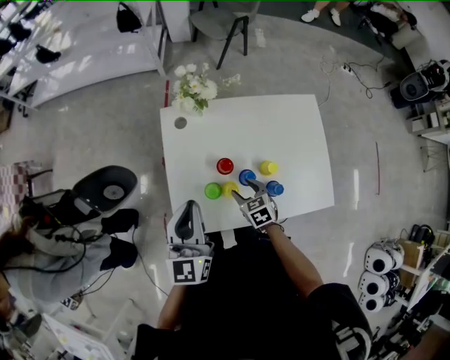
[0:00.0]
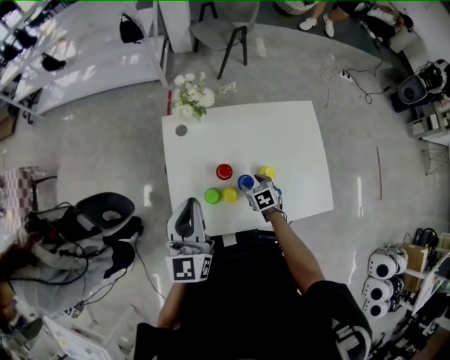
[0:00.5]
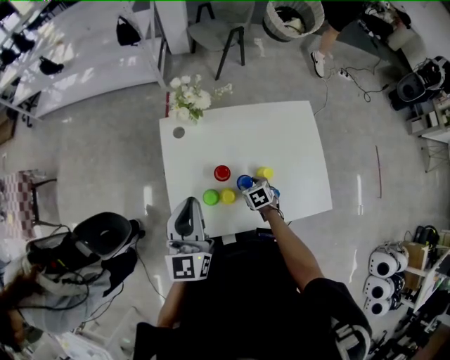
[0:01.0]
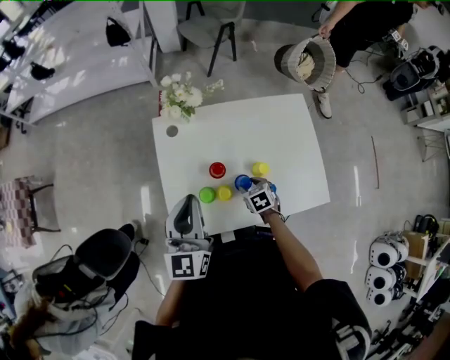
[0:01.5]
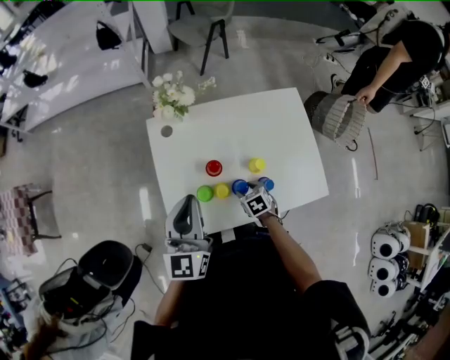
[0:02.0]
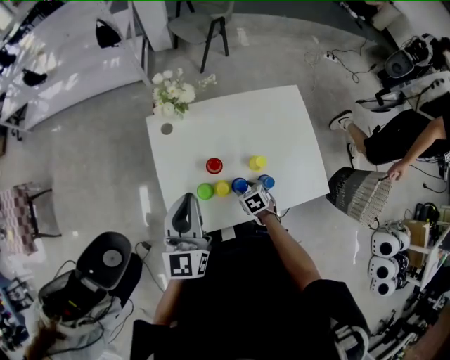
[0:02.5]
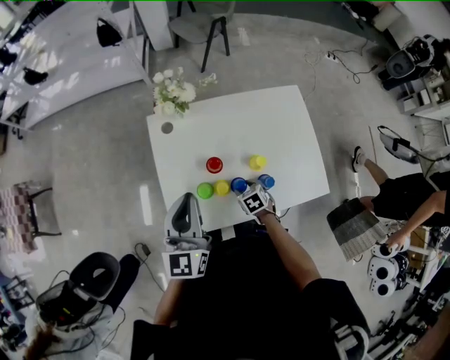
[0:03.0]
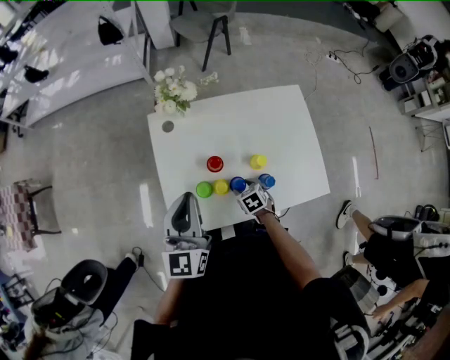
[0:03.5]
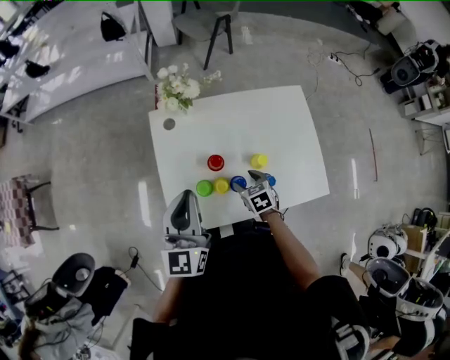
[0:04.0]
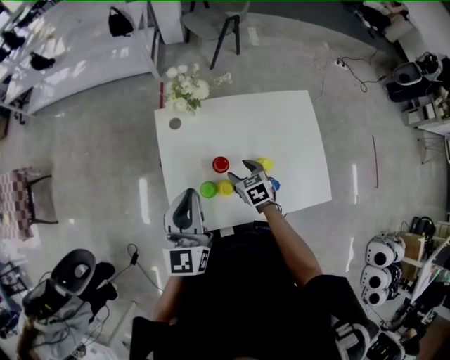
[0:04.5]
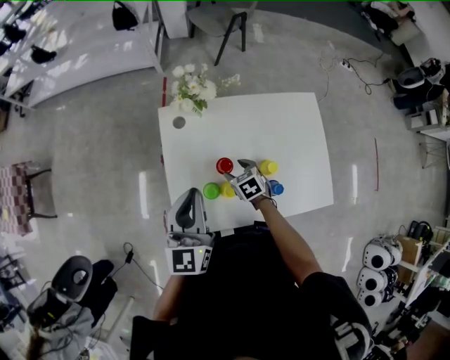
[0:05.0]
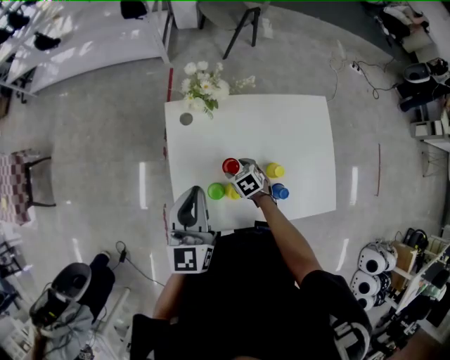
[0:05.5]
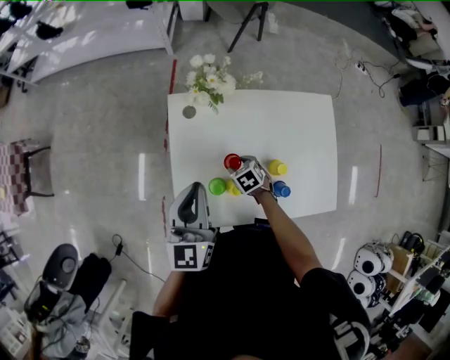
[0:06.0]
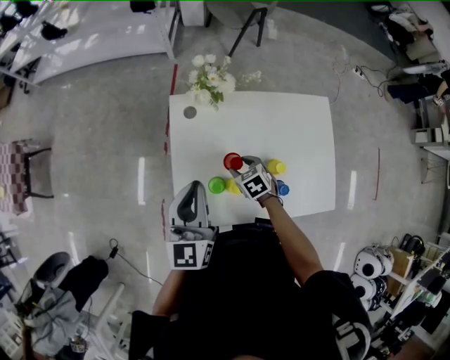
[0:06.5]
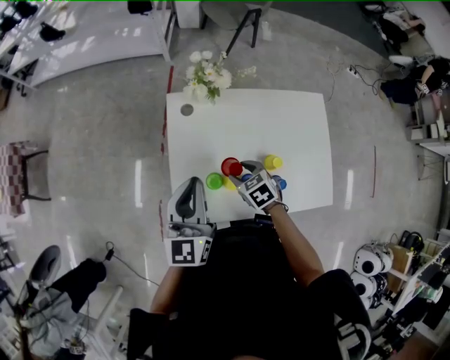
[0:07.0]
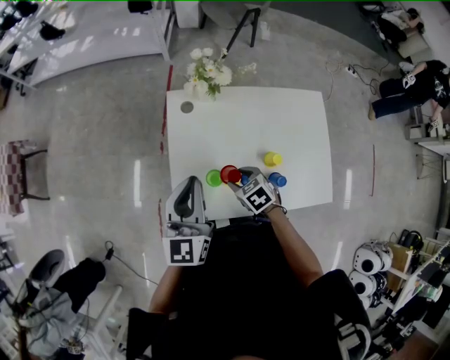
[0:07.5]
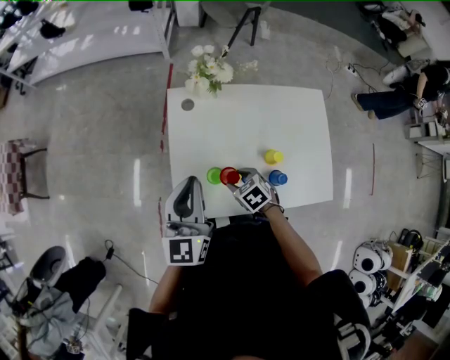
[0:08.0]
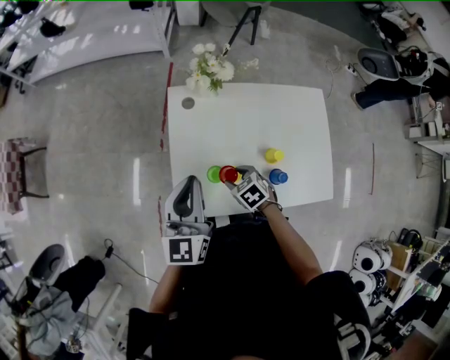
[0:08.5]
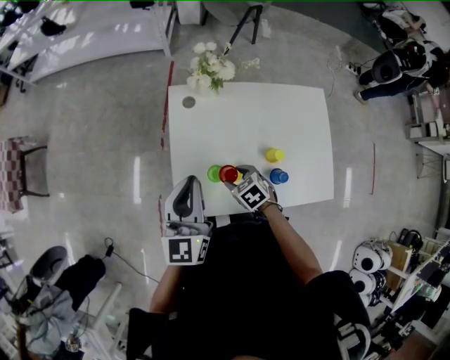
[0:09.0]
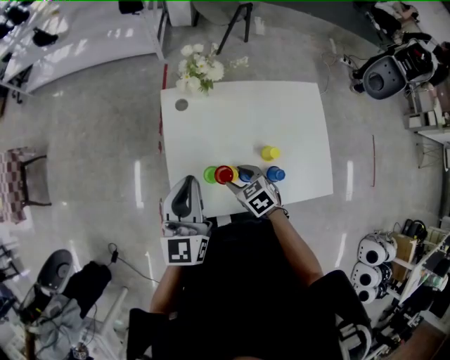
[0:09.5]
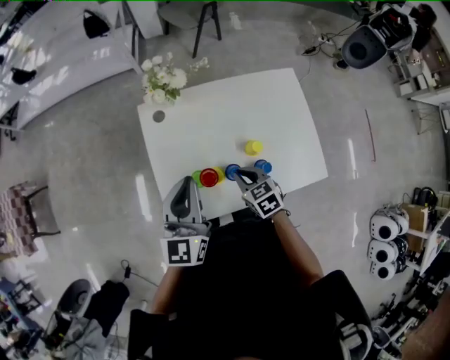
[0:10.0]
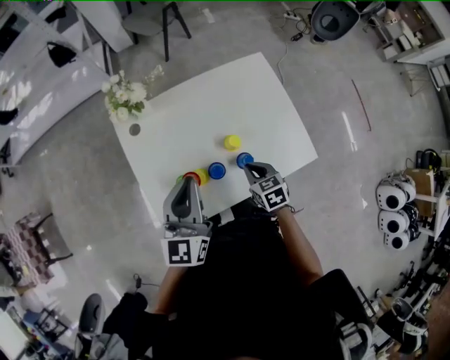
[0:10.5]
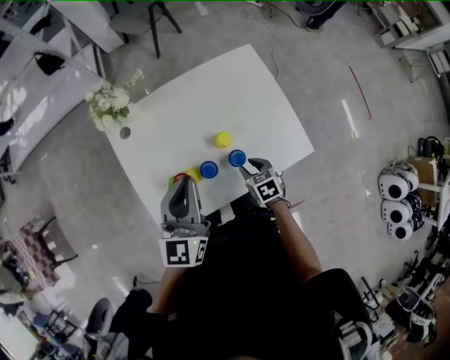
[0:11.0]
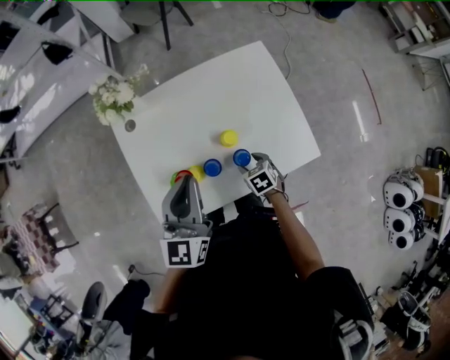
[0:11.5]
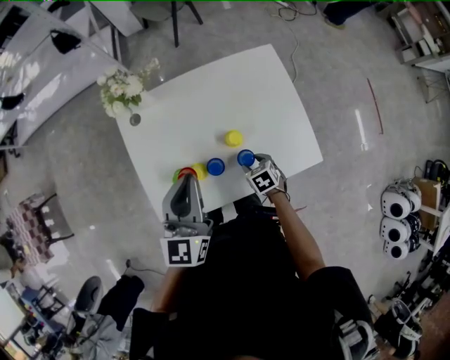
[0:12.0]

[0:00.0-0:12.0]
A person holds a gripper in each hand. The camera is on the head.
0:00.0 to 0:02.0: The right gripper is displaced to the right and downward by roughly 10 cm.
0:02.0 to 0:04.0: The right gripper is displaced upward by about 5 cm.
0:04.0 to 0:06.0: The left gripper is displaced forward by about 5 cm. Meanwhile the right gripper is displaced forward, to the left and downward by approximately 15 cm.
0:06.0 to 0:08.0: The left gripper moves some 5 cm. Meanwhile the right gripper moves backward, upward and to the left, about 15 cm.
0:08.0 to 0:10.0: The right gripper goes approximately 10 cm to the right and upward, turns by some 20 degrees, and closes; the left gripper goes some 10 cm to the right.
0:10.0 to 0:12.0: The left gripper shifts approximately 15 cm to the right. Meanwhile the right gripper is displaced to the right and downward by about 20 cm, rotates some 20 degrees, and opens.

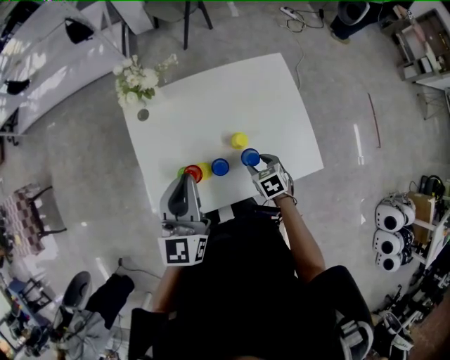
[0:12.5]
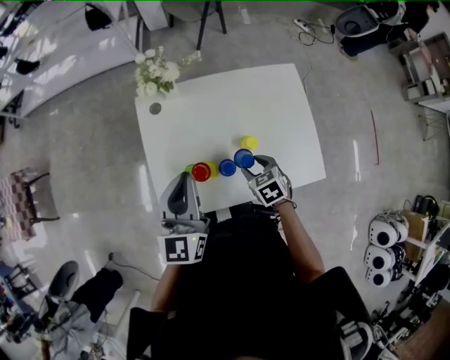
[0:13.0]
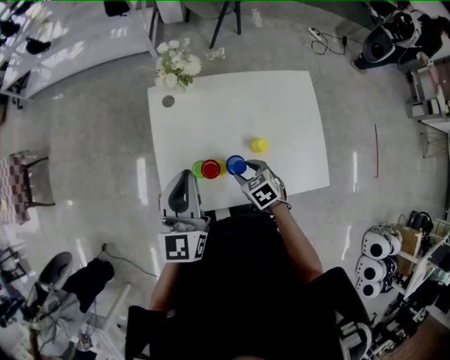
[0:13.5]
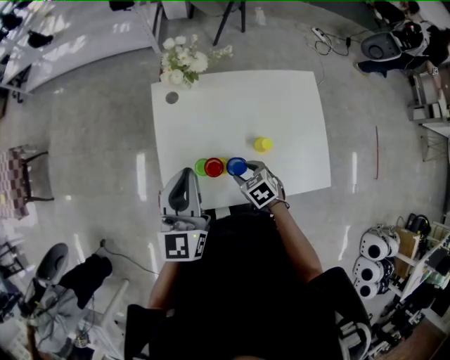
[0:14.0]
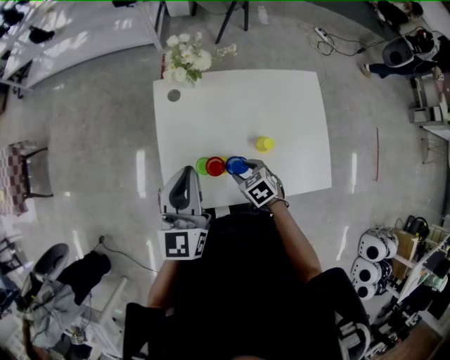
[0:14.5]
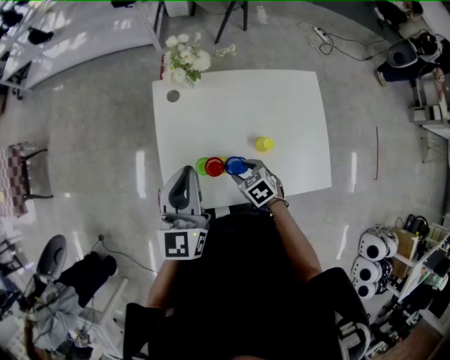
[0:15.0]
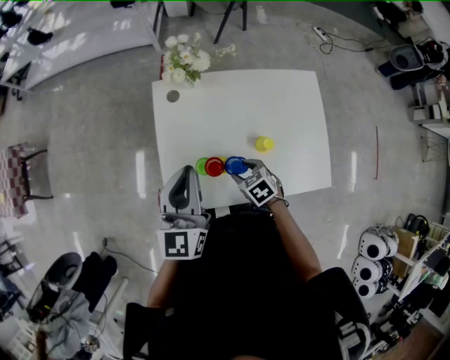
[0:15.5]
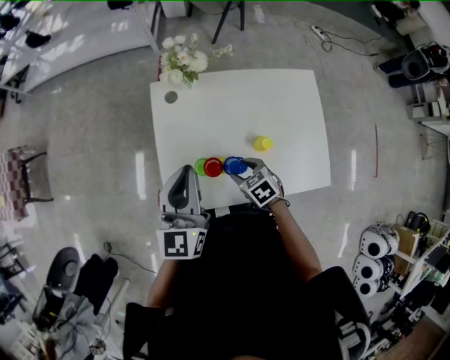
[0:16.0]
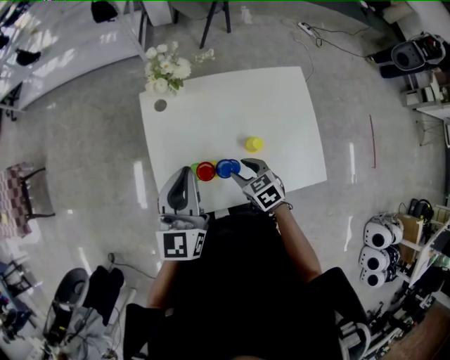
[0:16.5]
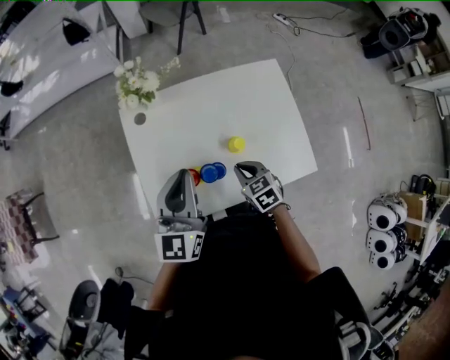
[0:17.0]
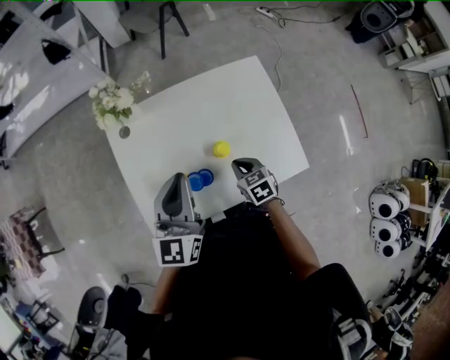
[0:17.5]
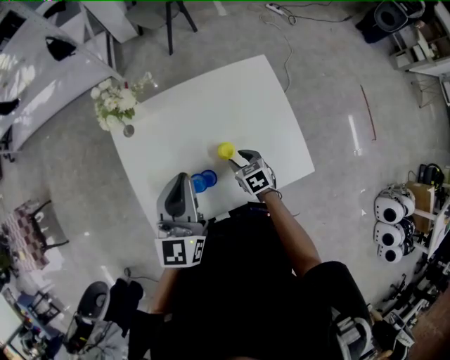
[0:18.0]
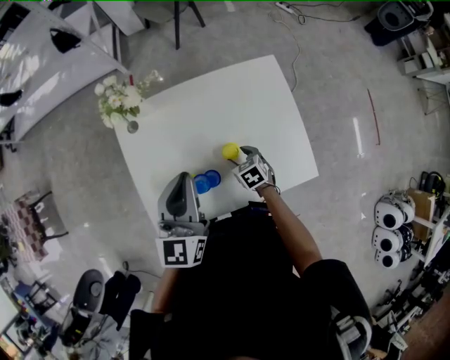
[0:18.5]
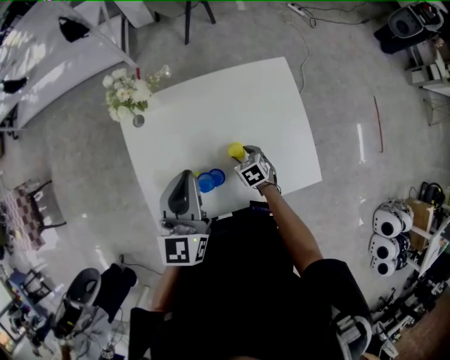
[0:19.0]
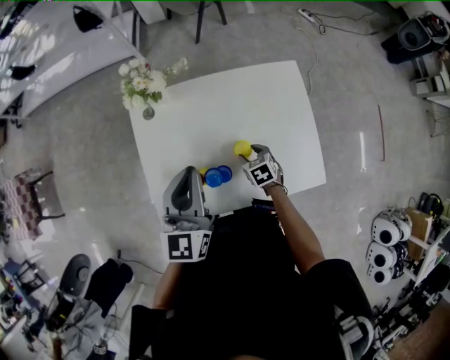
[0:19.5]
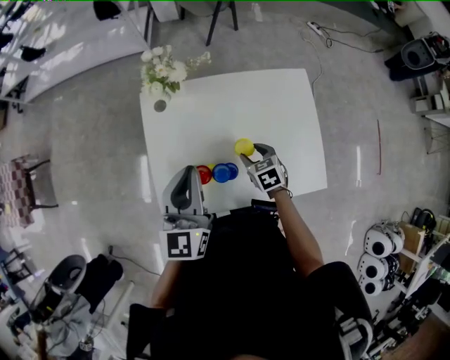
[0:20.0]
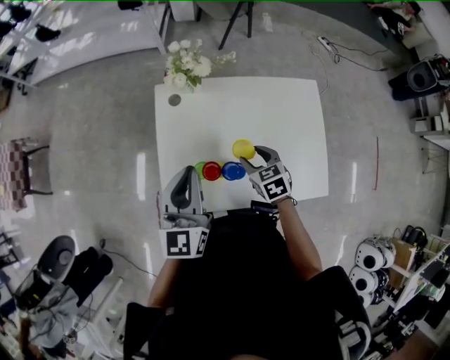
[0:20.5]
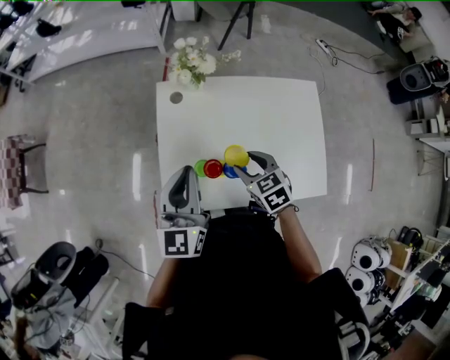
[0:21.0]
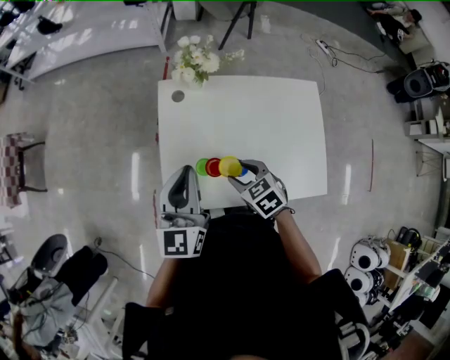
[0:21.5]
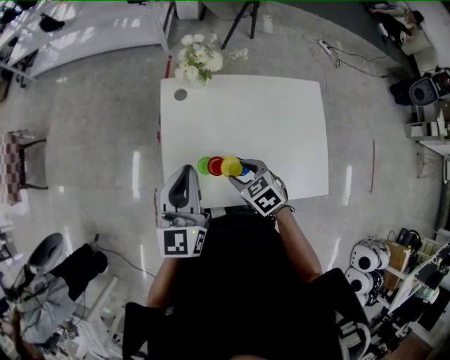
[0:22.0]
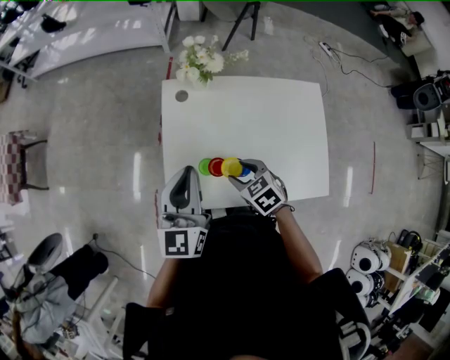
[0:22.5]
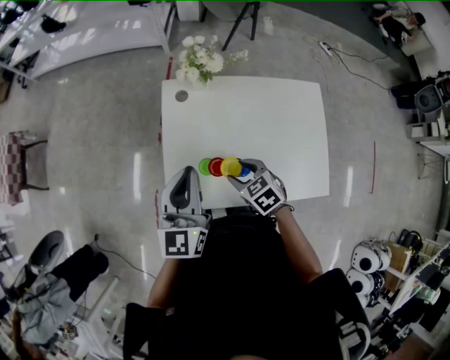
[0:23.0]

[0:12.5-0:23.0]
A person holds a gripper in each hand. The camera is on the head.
0:12.5 to 0:14.5: The left gripper heads to the left, covering approximately 10 cm. The right gripper heads to the left, covering about 15 cm, and swivels some 20 degrees.
0:14.5 to 0:16.5: The grippers move only a little.
0:16.5 to 0:19.0: The right gripper is displaced to the right, downward and forward by approximately 20 cm, and closes, then opens again. Meanwhile the left gripper travels to the right by roughly 10 cm.
0:19.0 to 0:21.0: The left gripper shifts about 15 cm to the left. Meanwhile the right gripper goes roughly 25 cm upward and to the left, and swivels about 20 degrees.
0:21.0 to 0:23.0: The right gripper shifts by about 5 cm.

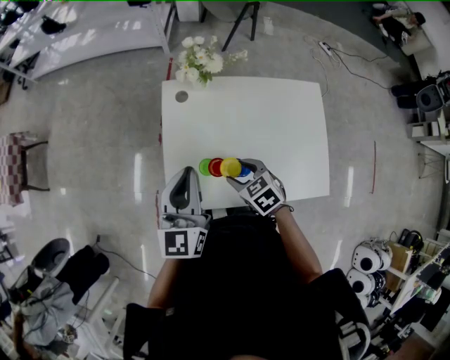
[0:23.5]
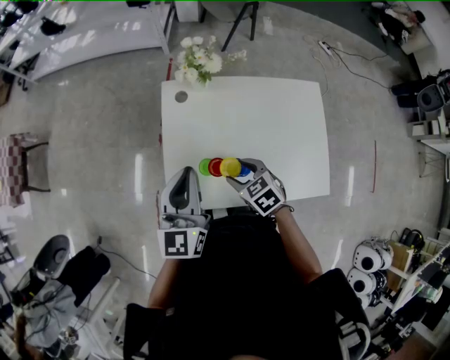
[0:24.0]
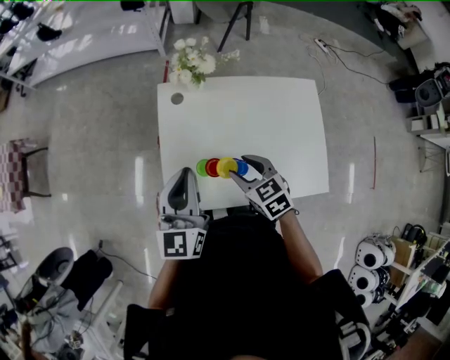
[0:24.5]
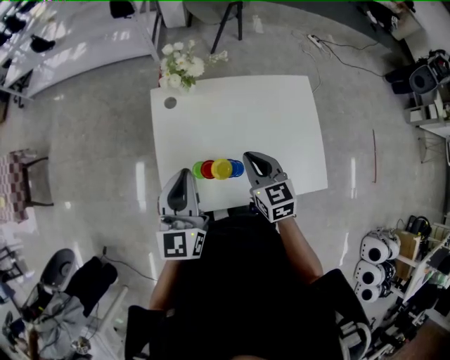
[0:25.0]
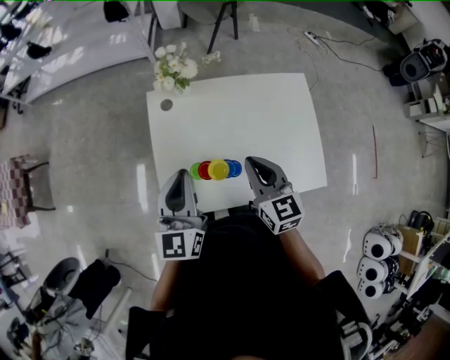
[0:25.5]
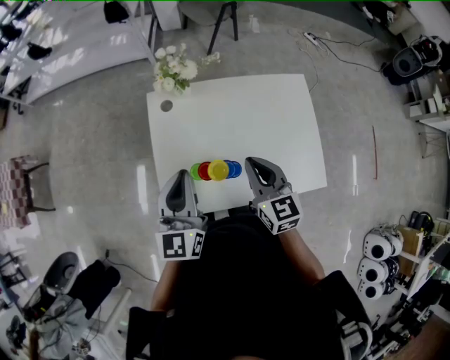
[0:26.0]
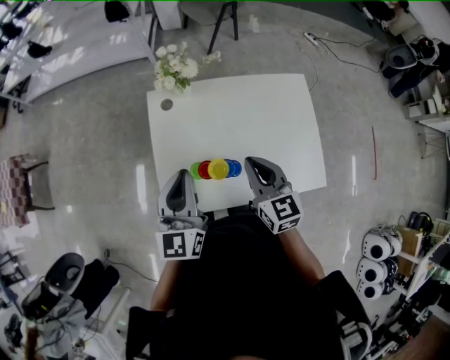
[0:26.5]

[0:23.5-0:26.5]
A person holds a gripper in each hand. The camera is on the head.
0:23.5 to 0:25.0: The right gripper is displaced upward and to the right by roughly 10 cm, turns by some 30 degrees, and closes its fingers.
0:25.0 to 0:26.5: The right gripper changes place by about 5 cm.

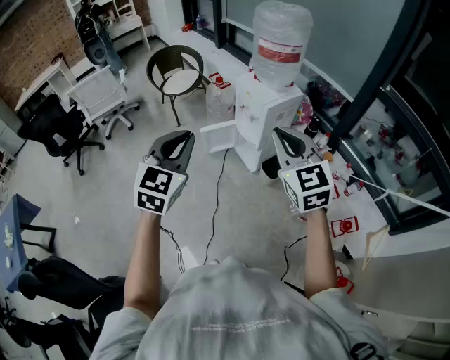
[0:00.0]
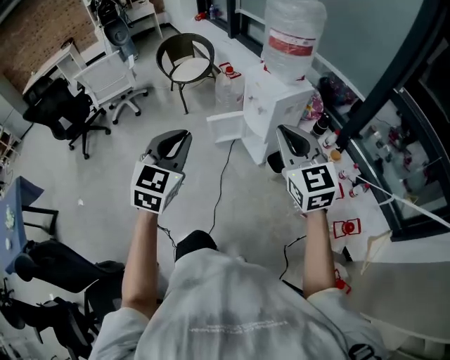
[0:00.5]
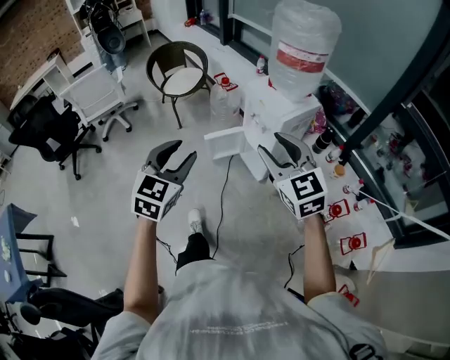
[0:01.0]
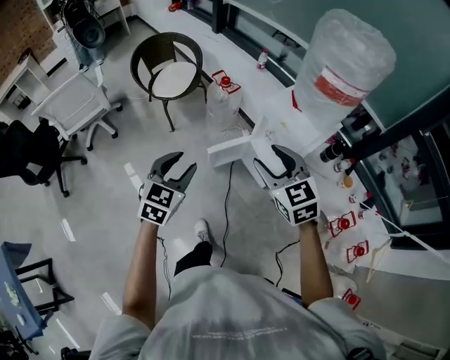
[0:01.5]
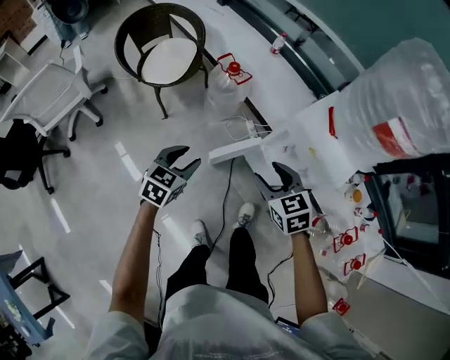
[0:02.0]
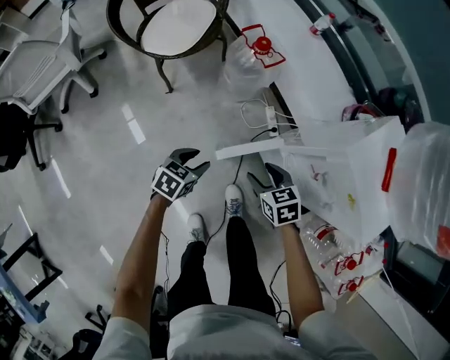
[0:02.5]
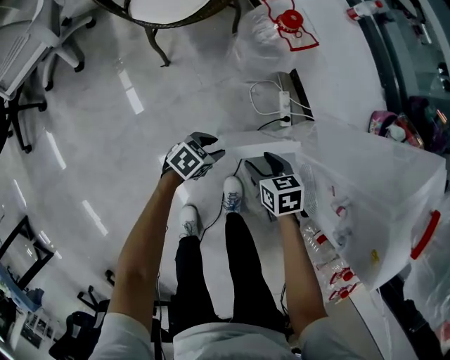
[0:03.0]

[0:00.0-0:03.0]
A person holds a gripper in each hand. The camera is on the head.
0:00.0 to 0:01.5: Both grippers travel together forward, to the left and downward, about 40 cm. The right gripper opens its fingers. The left gripper opens its fingers.
0:01.5 to 0:03.0: Both grippers travel together downward, some 60 cm. The left gripper changes its angle by some 50 degrees. The right gripper points its fingers some 30 degrees further downward.
